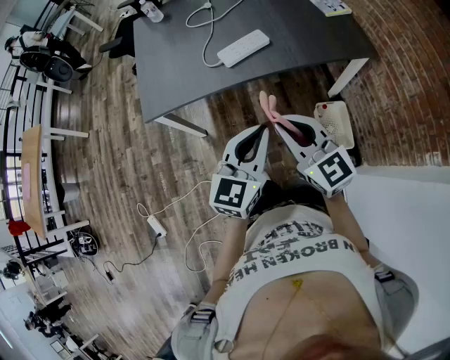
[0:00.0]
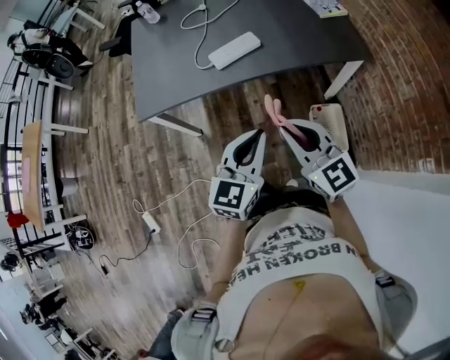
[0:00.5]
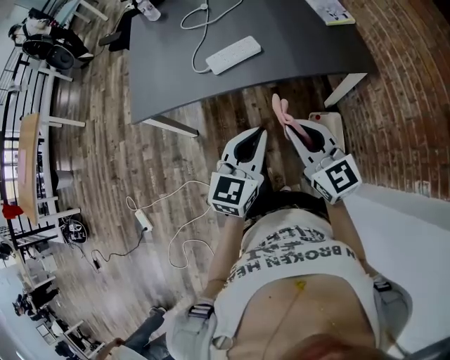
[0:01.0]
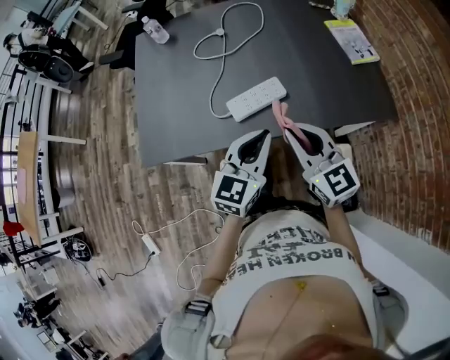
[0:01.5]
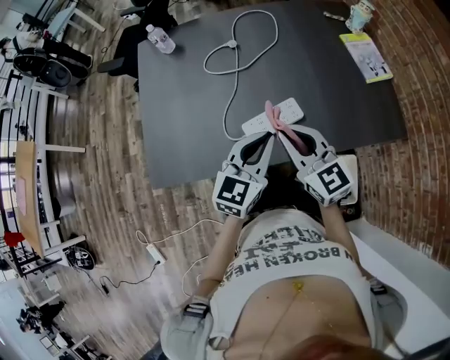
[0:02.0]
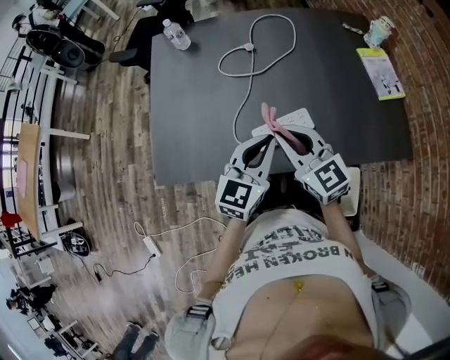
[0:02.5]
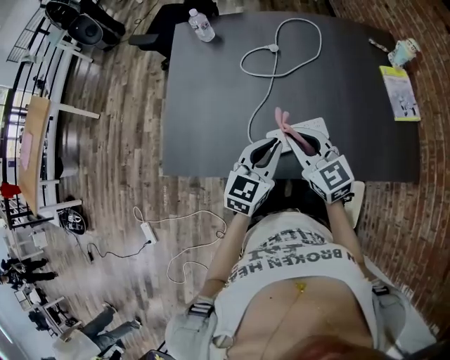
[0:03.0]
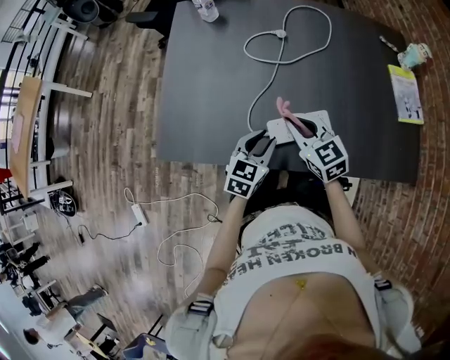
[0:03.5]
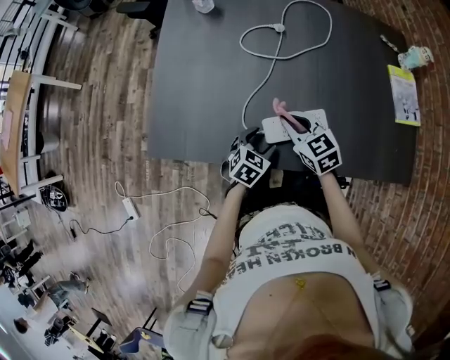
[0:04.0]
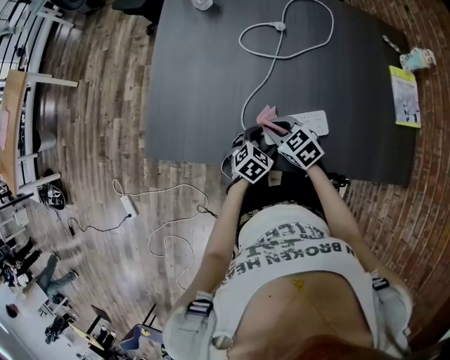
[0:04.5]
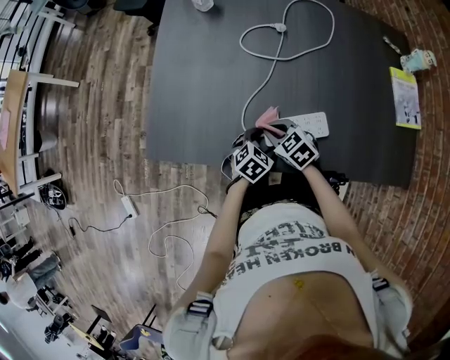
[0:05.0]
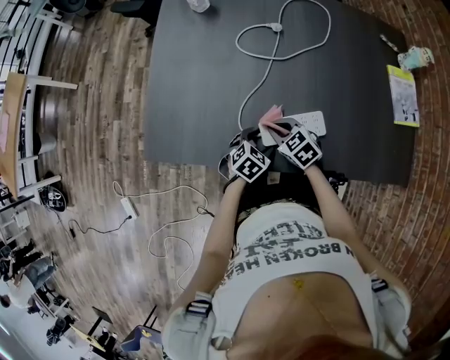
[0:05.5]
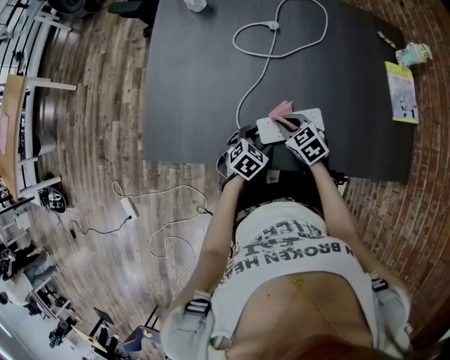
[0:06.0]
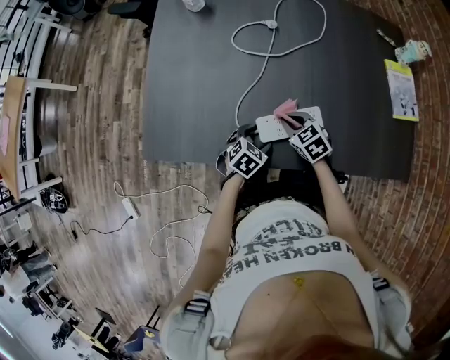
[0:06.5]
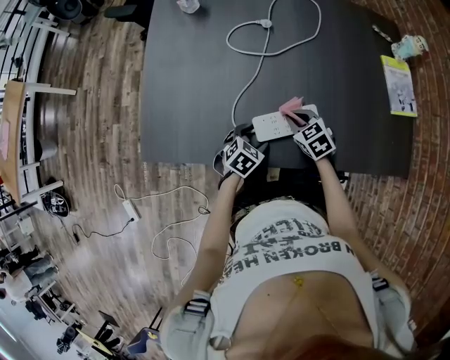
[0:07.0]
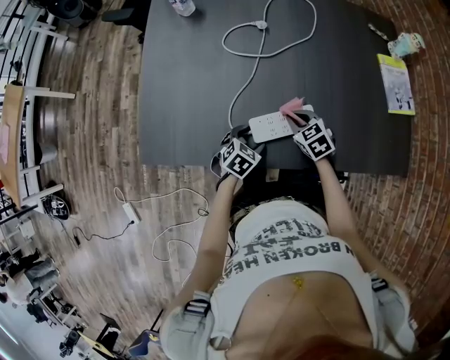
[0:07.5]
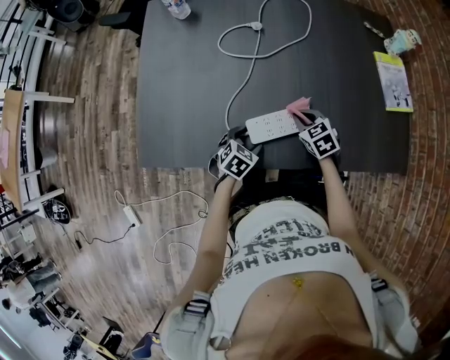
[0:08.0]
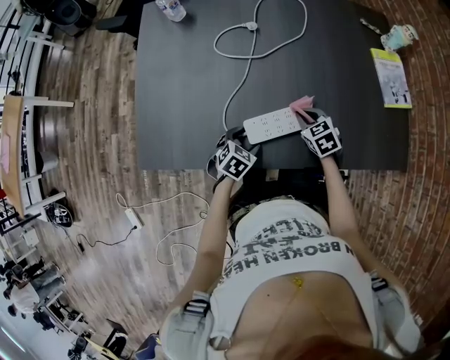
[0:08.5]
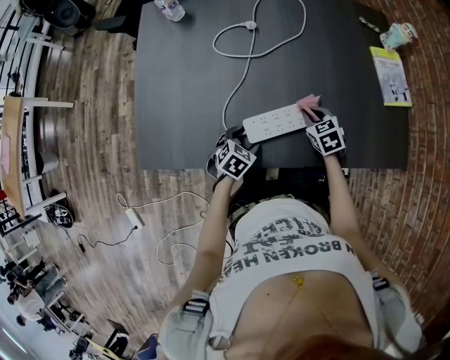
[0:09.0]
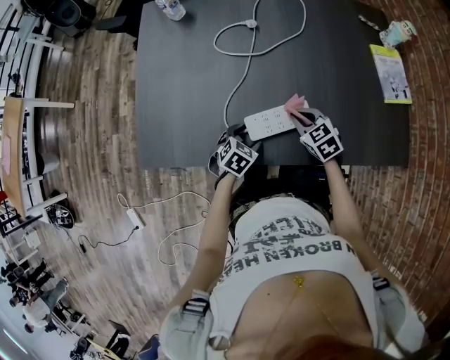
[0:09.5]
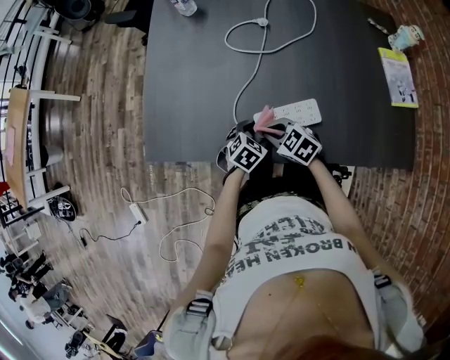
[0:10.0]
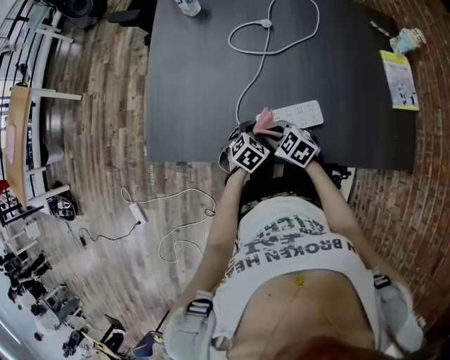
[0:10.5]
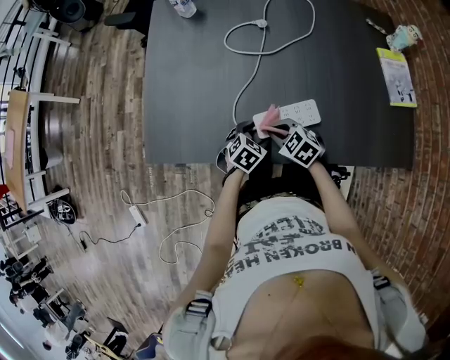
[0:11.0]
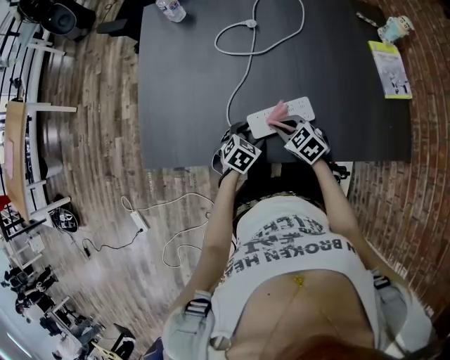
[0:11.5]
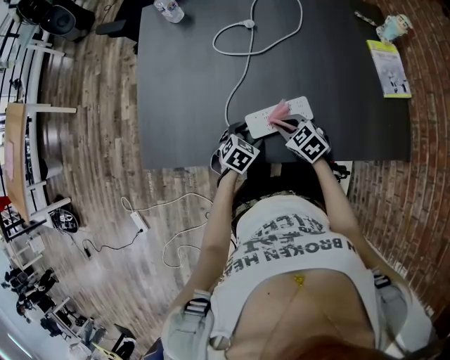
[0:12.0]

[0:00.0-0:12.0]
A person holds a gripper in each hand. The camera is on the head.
0.0 to 2.0 s: The grippers both shift forward by some 35 cm.
2.0 to 4.0 s: The left gripper shifts approximately 25 cm downward, tips its fingers downward by about 30 degrees, and opens its fingers. The right gripper shifts about 20 cm downward and forward, and turns by some 30 degrees.
4.0 to 6.0 s: The right gripper is displaced downward by approximately 10 cm.
6.0 to 8.0 s: The right gripper goes roughly 10 cm to the right.
8.0 to 10.0 s: The right gripper goes about 15 cm to the left and backward, and rotates some 30 degrees.
10.0 to 12.0 s: The right gripper is displaced to the right by roughly 10 cm.

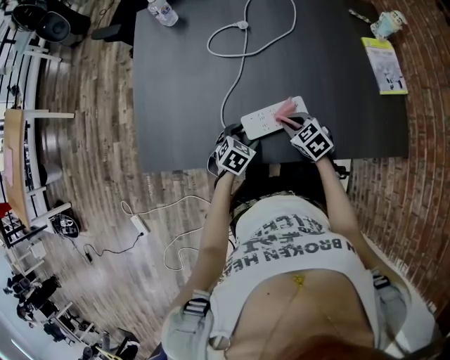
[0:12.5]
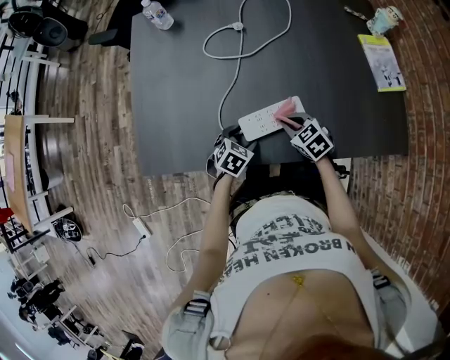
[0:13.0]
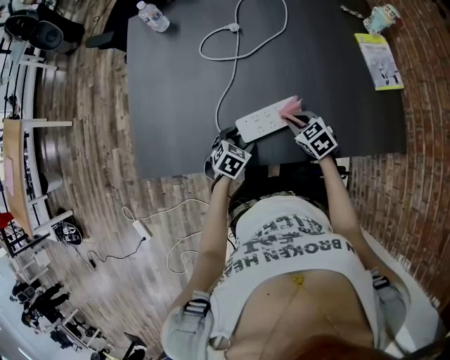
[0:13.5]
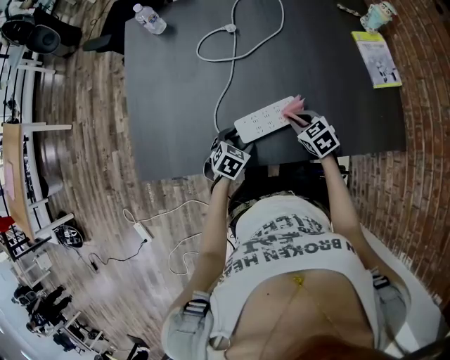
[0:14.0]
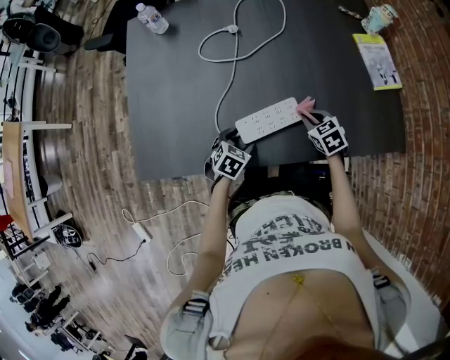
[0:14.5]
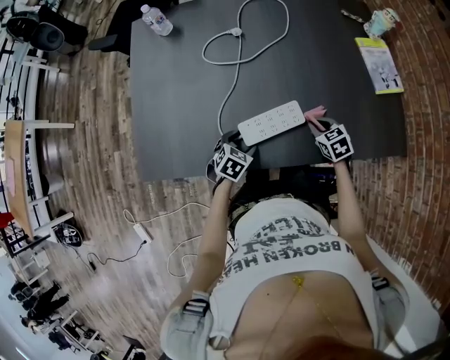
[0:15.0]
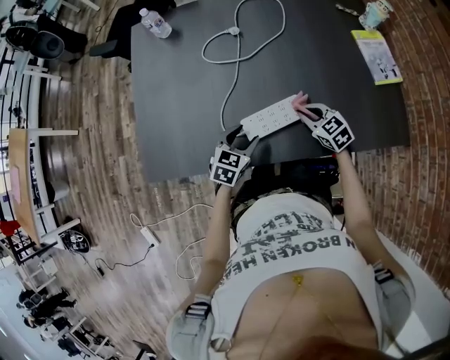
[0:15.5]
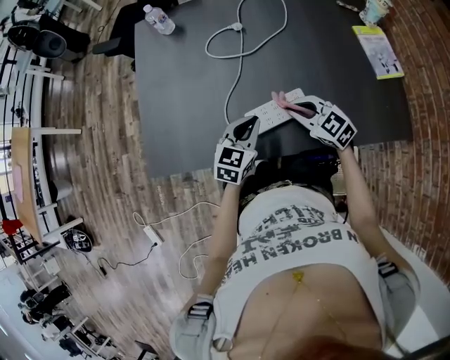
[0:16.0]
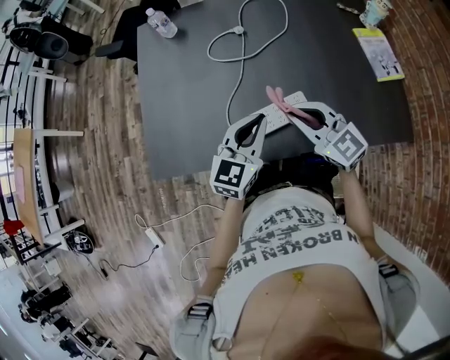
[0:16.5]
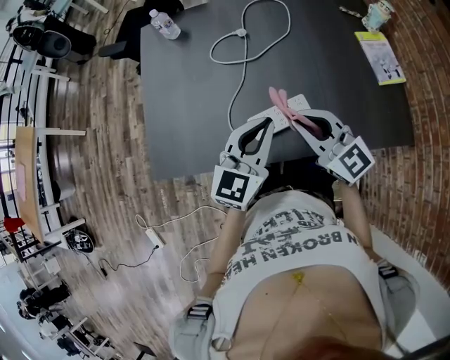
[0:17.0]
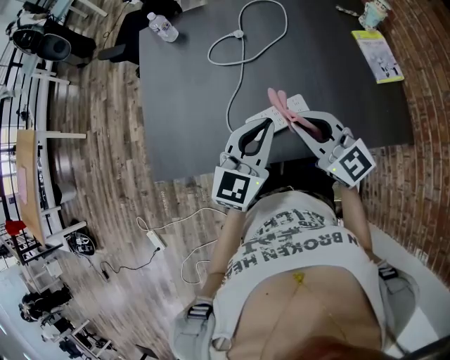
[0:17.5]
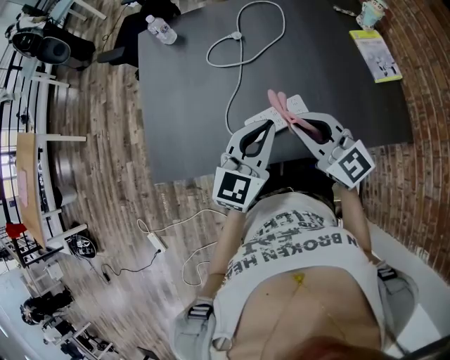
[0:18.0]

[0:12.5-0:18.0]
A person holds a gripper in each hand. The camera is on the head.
12.5 to 14.5 s: The right gripper heads to the right, covering approximately 10 cm.
14.5 to 16.0 s: The left gripper goes approximately 15 cm upward, angles its fingers upward, by some 30 degrees, and closes up. Meanwhile the right gripper moves to the left and upward, about 15 cm, and rotates about 40 degrees.
16.0 to 18.0 s: The grippers both shift upward by about 15 cm. The right gripper changes its angle by roughly 30 degrees.

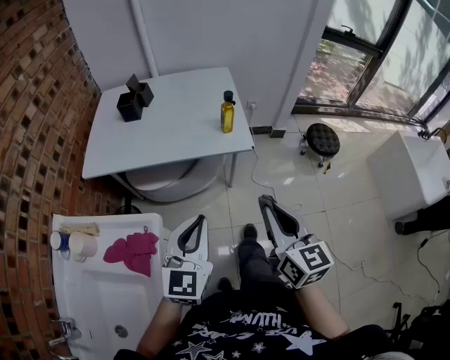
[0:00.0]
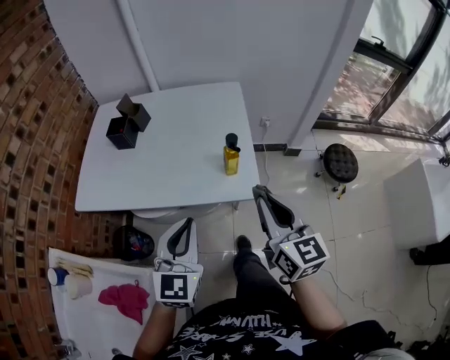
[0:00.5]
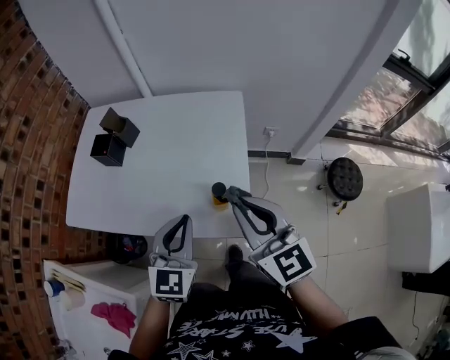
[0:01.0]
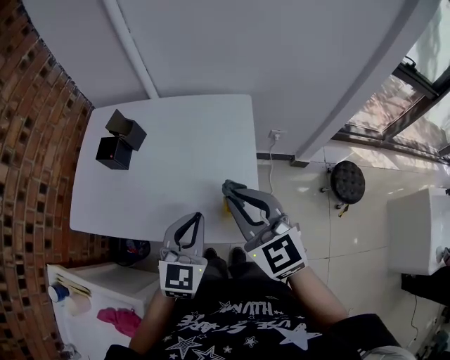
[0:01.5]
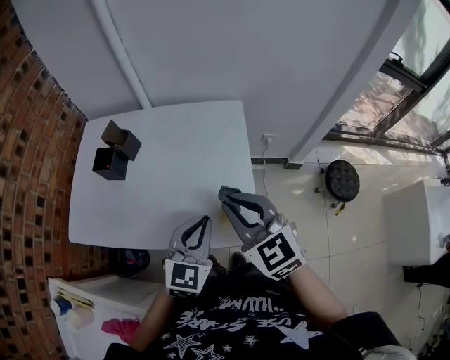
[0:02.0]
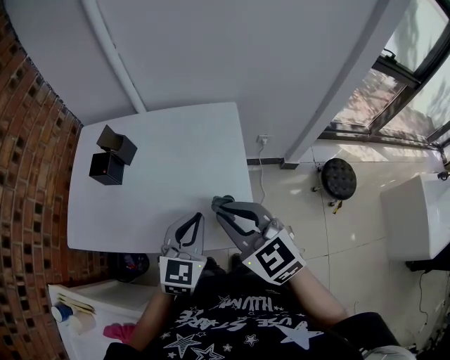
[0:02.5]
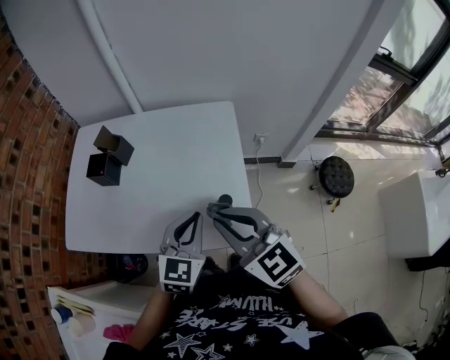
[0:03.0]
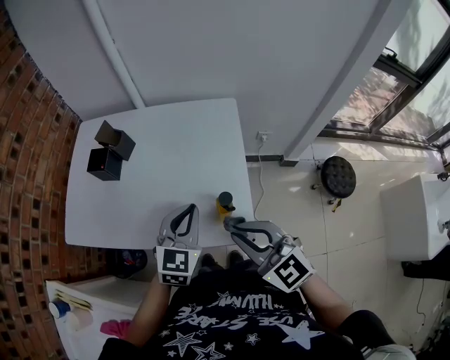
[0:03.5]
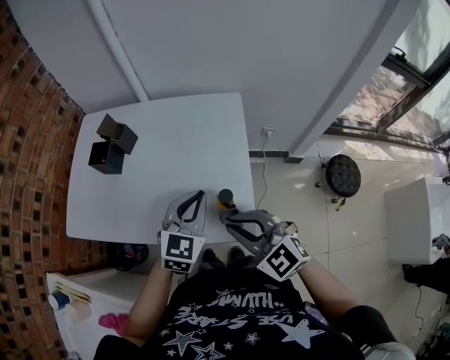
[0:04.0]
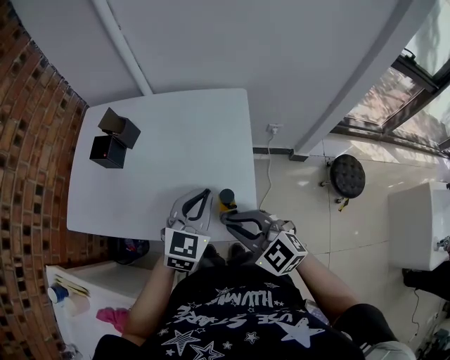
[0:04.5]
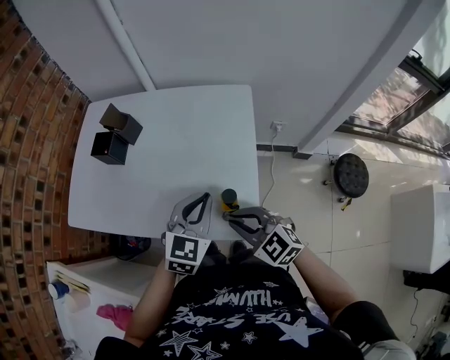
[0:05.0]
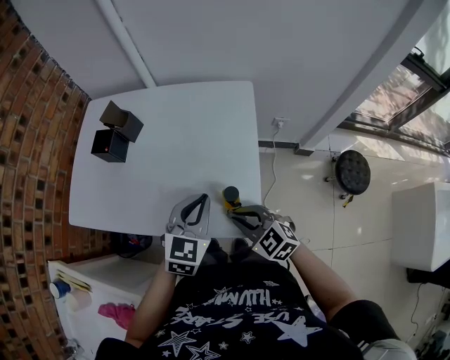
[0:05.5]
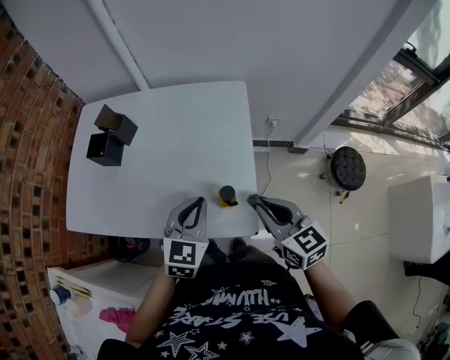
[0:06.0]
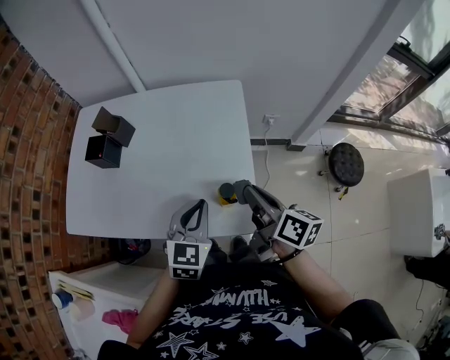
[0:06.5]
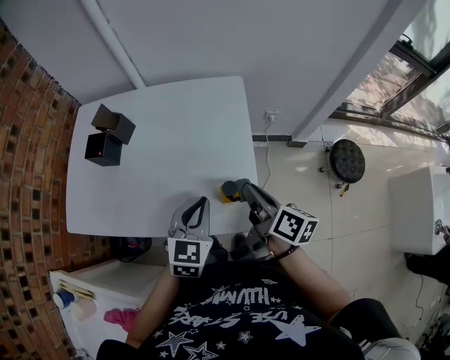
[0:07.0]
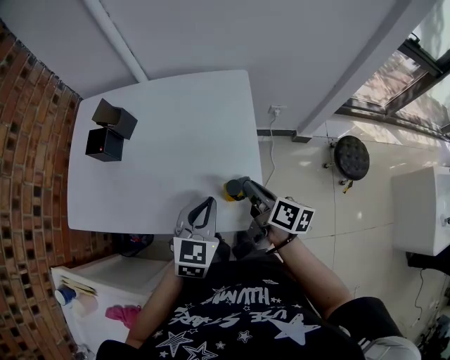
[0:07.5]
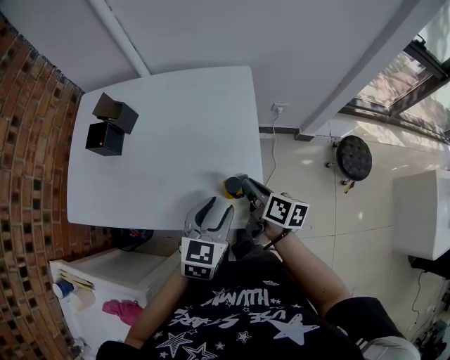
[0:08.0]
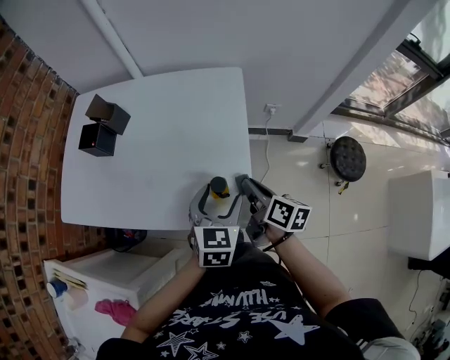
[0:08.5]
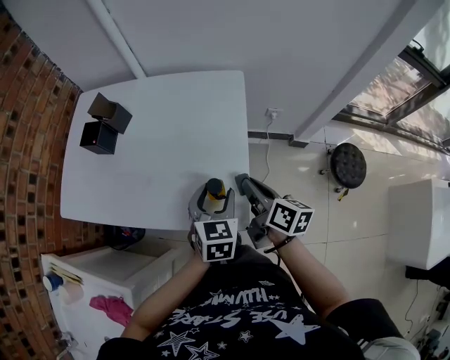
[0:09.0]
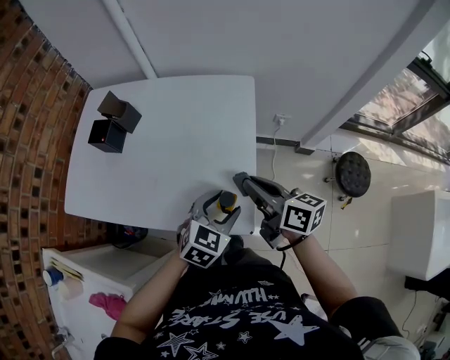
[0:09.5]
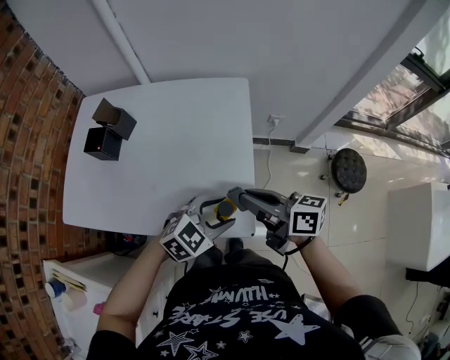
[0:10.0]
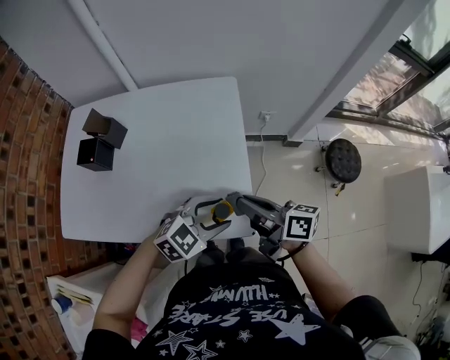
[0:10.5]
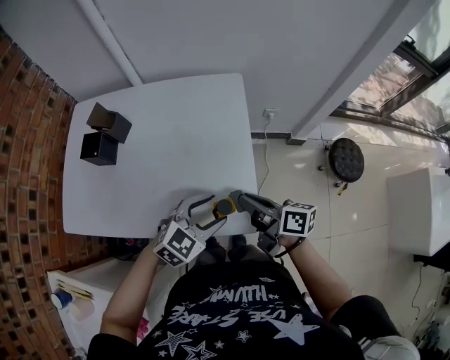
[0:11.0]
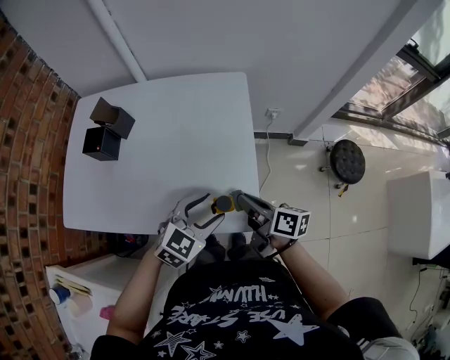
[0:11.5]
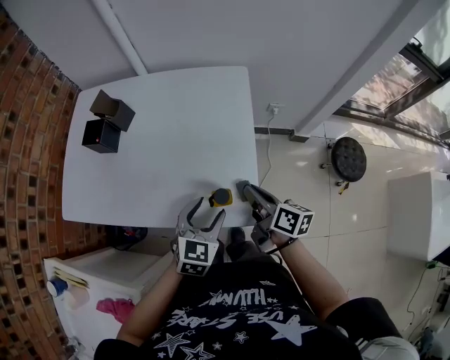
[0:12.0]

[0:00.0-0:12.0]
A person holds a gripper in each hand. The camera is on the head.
0.0 to 2.0 s: The two grippers go roughly 35 cm forward. The right gripper changes its angle by approximately 40 degrees.
2.0 to 4.0 s: The right gripper is displaced downward and backward by roughly 10 cm, and turns by about 20 degrees; the left gripper is displaced forward by some 5 cm.
4.0 to 6.0 s: The right gripper is displaced to the right by about 10 cm, travels downward and back again, roughly 15 cm each way, and changes its angle by about 40 degrees.
6.0 to 8.0 s: The left gripper moves approximately 5 cm, and opens its fingers, while the right gripper is displaced downward and forward by some 10 cm, and twists about 50 degrees clockwise, seen from behind.
8.0 to 10.0 s: The left gripper changes its angle by approximately 40 degrees; the right gripper is displaced upward by about 10 cm, and rotates approximately 30 degrees.
10.0 to 12.0 s: The right gripper heads downward, covering approximately 10 cm, and turns by some 30 degrees, while the left gripper is displaced to the left by roughly 5 cm, and changes its angle by some 40 degrees.
